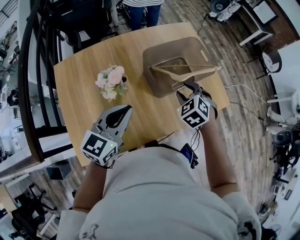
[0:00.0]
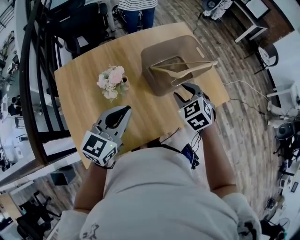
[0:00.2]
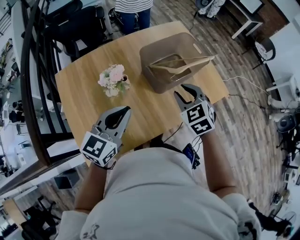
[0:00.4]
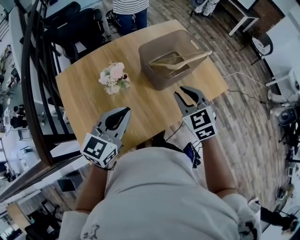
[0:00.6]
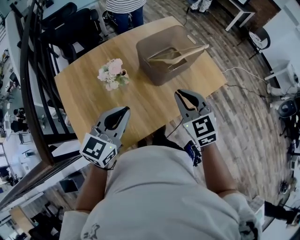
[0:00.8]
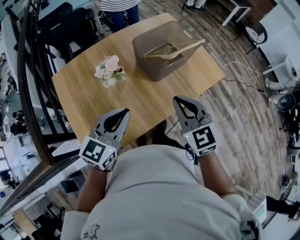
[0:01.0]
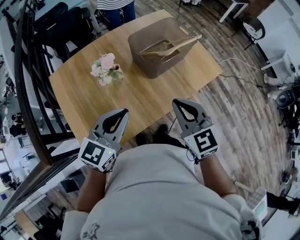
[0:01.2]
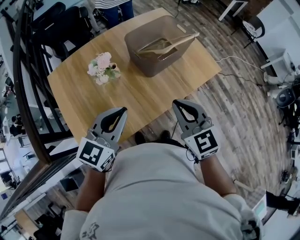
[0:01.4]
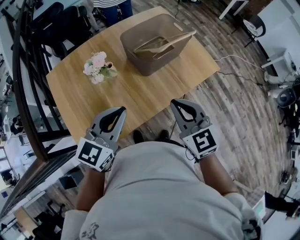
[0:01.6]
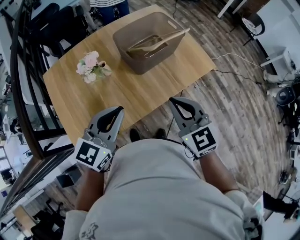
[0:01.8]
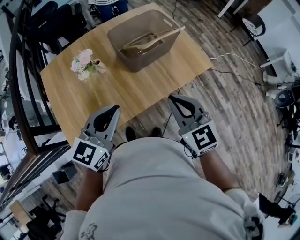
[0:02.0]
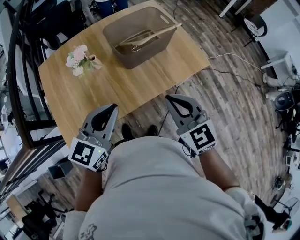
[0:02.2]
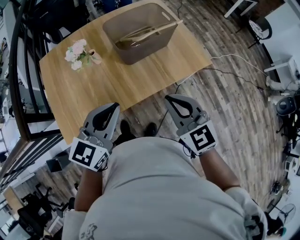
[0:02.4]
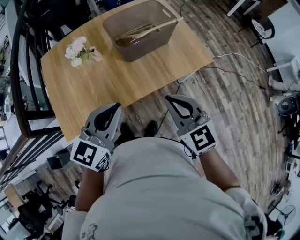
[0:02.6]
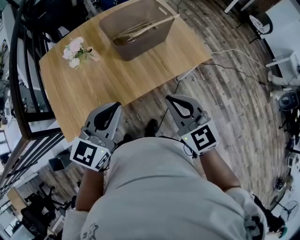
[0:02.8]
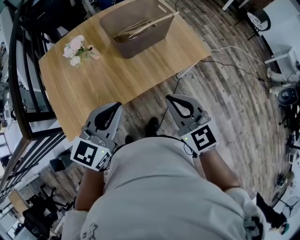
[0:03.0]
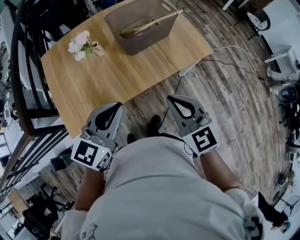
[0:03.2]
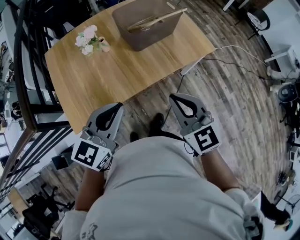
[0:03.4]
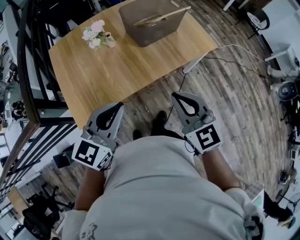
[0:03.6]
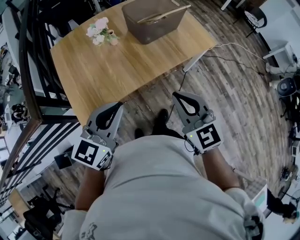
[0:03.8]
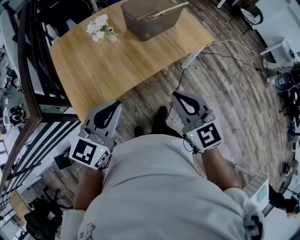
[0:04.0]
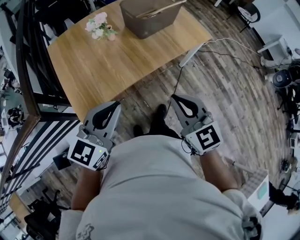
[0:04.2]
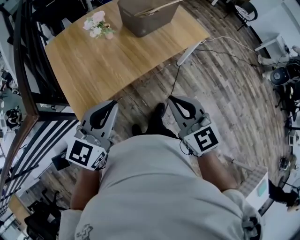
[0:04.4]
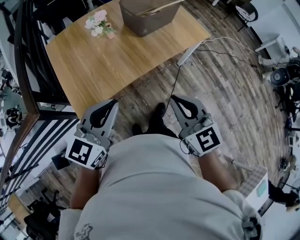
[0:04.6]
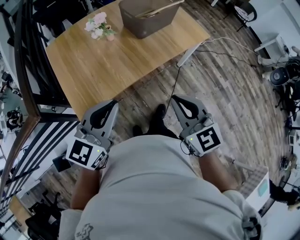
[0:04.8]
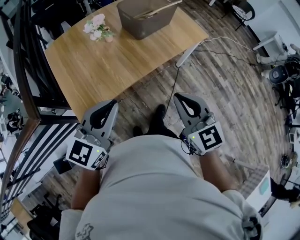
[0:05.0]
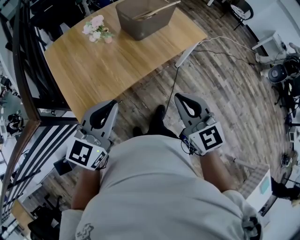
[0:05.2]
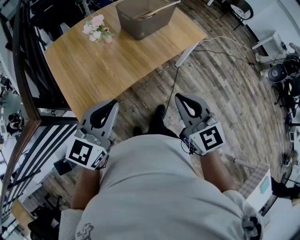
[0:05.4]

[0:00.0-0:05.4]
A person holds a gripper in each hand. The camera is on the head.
0:00.0 to 0:01.4: The right gripper heads backward and upward, covering roughly 25 cm, points its fingers approximately 30 degrees further upward, and closes its fingers, while the left gripper is displaced backward by about 10 cm.
0:01.4 to 0:02.8: The two grippers go some 15 cm to the right.
0:02.8 to 0:04.0: The two grippers go approximately 20 cm backward and to the left.
0:04.0 to 0:05.4: The grippers move only a little.

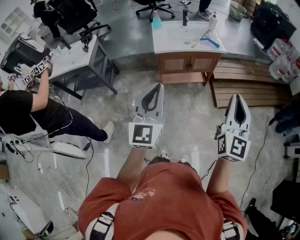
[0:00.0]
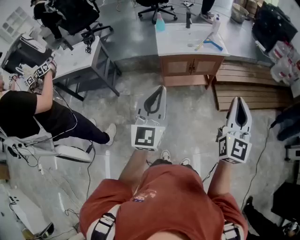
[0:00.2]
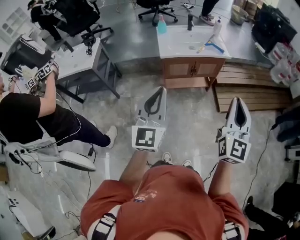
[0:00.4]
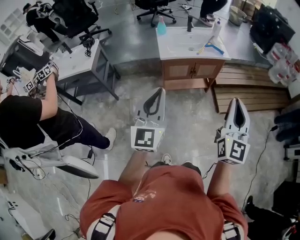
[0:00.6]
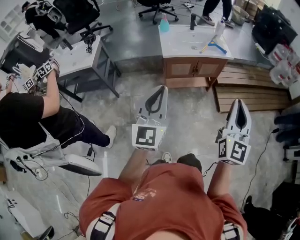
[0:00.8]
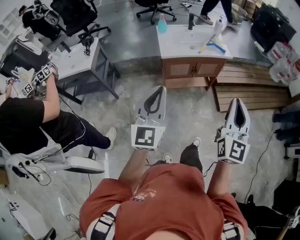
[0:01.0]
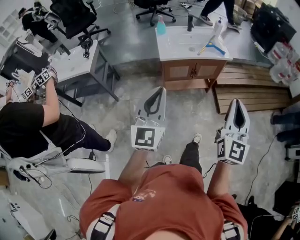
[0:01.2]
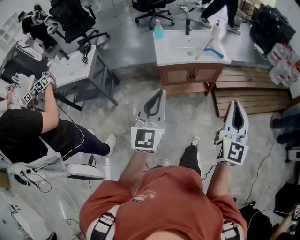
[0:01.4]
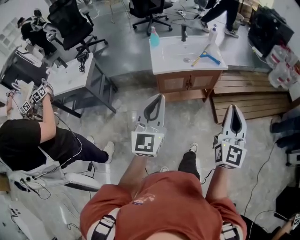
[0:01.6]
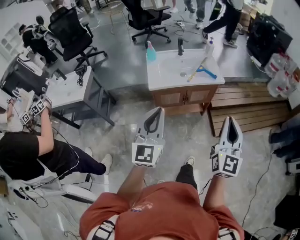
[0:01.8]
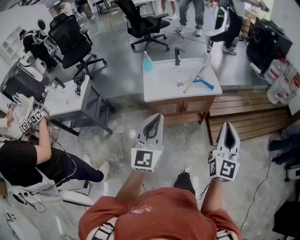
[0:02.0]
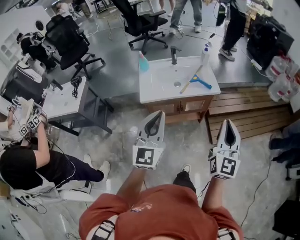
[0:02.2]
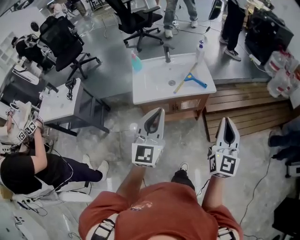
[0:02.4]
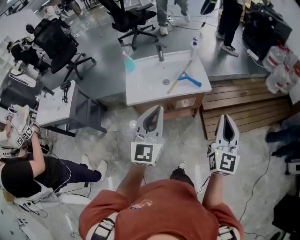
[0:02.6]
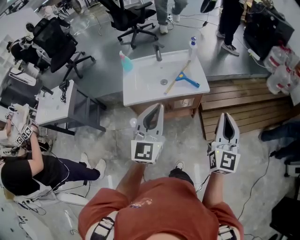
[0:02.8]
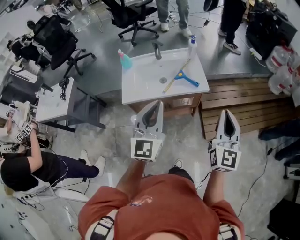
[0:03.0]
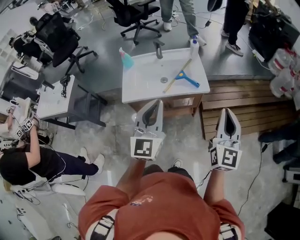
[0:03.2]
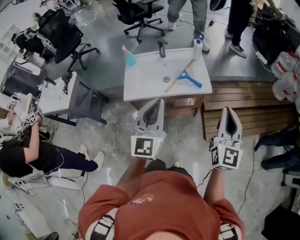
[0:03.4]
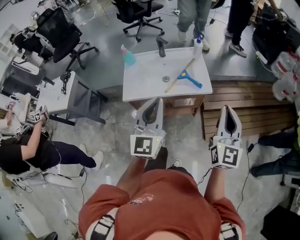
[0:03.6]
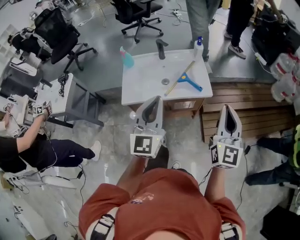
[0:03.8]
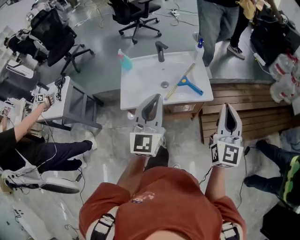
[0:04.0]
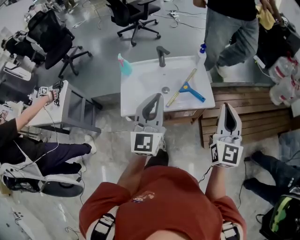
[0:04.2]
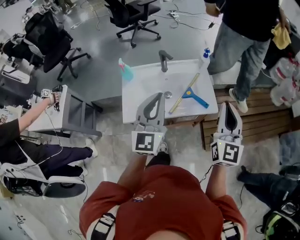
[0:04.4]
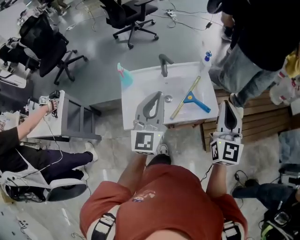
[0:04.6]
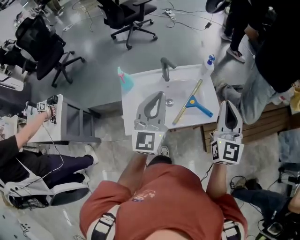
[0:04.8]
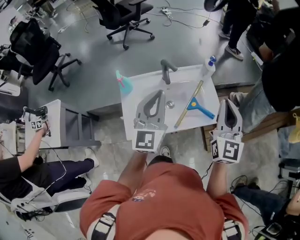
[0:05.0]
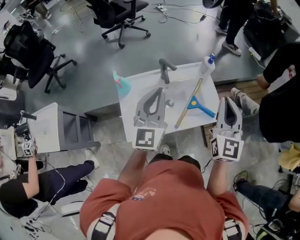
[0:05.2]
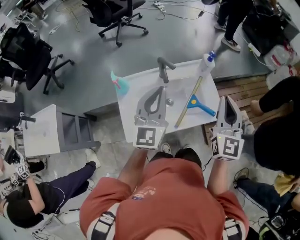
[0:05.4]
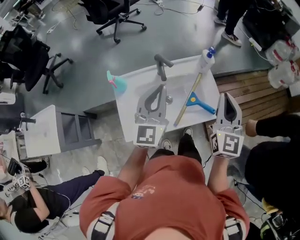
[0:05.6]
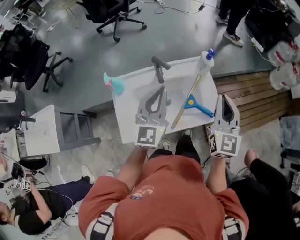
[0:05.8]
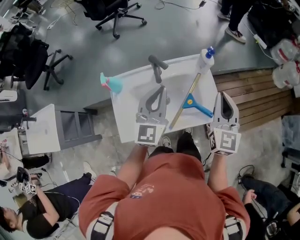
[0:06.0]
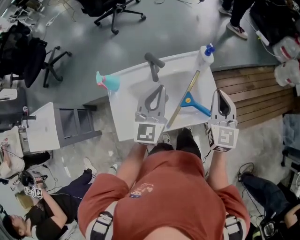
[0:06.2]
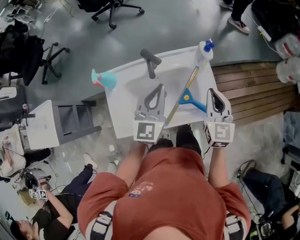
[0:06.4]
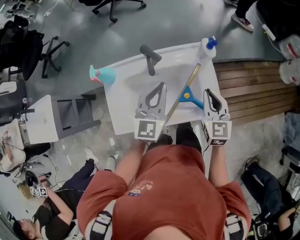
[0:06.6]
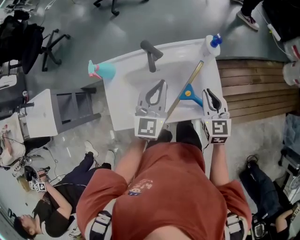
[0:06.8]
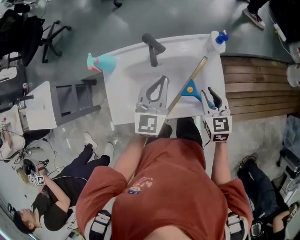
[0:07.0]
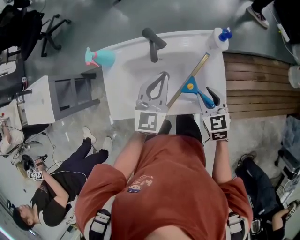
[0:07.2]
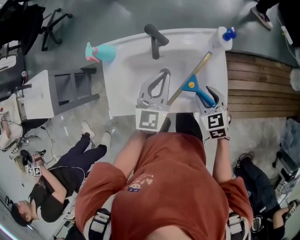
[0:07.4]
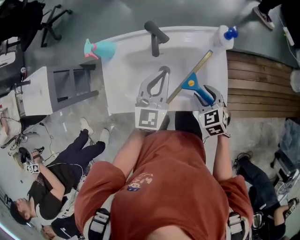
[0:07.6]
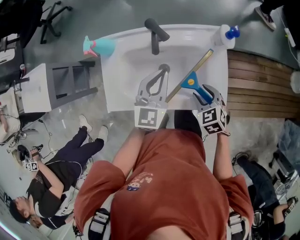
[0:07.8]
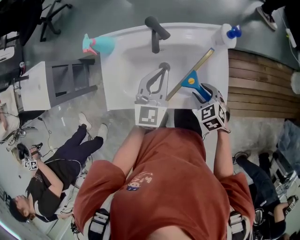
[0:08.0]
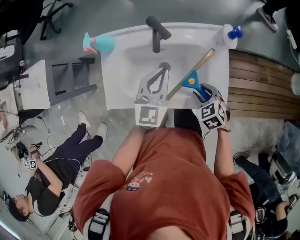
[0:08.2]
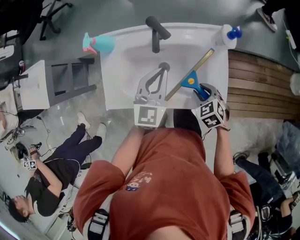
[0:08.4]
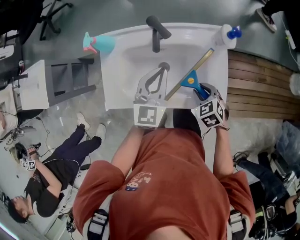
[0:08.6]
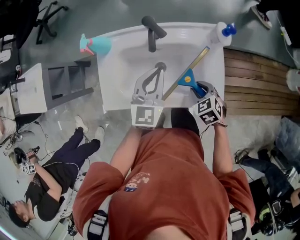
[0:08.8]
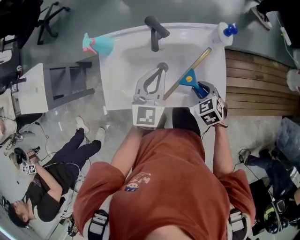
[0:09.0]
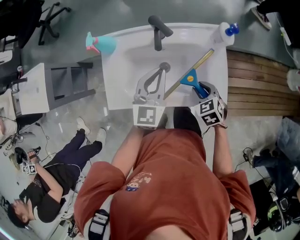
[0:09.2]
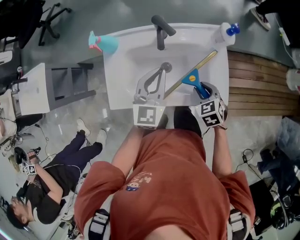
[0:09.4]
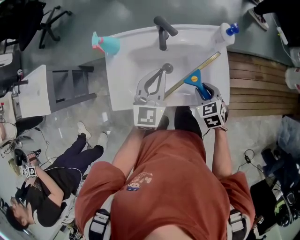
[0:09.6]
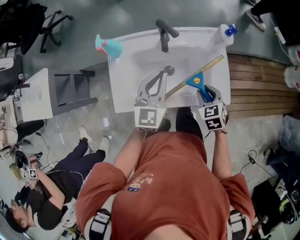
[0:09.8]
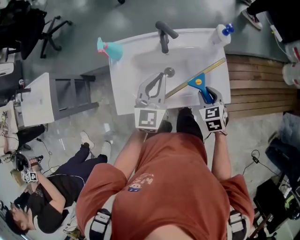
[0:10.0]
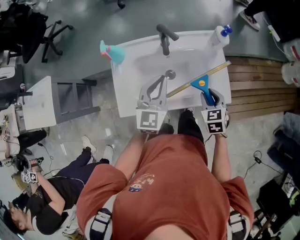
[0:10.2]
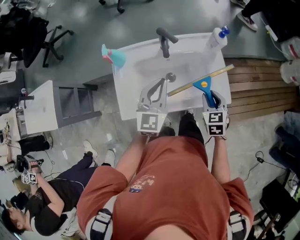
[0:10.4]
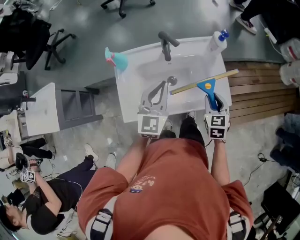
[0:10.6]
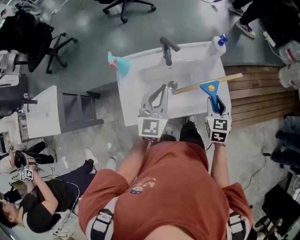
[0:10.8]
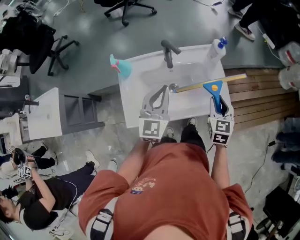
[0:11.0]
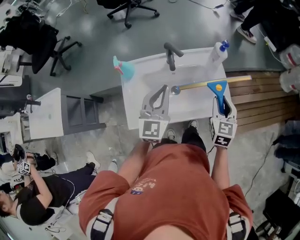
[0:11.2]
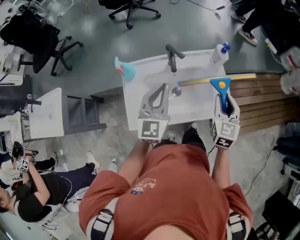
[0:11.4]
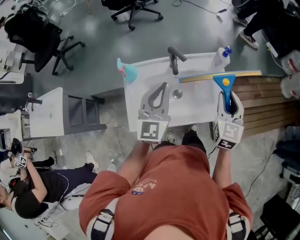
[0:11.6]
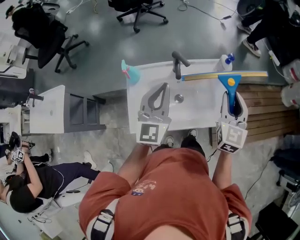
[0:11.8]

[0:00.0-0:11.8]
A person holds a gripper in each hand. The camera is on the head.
0:00.0 to 0:01.4: Both grippers travel together forward and to the left, about 10 cm.
0:01.4 to 0:03.0: The pair of grippers is taken forward and to the right, some 50 cm.
0:03.0 to 0:04.4: The two grippers go about 25 cm forward and to the left.
0:04.4 to 0:06.0: Both grippers travel together forward and downward, roughly 25 cm.
0:06.0 to 0:07.4: The right gripper shifts about 25 cm downward, points its fingers some 40 degrees further downward, and opens up; the left gripper moves downward, roughly 15 cm.
0:07.4 to 0:08.8: The right gripper travels downward by about 5 cm.
0:08.8 to 0:10.4: The left gripper moves backward, to the left and upward, roughly 10 cm; the right gripper is displaced upward and backward by roughly 10 cm, and rotates some 30 degrees.
0:10.4 to 0:11.8: The right gripper travels upward by some 20 cm, and tilts its fingers some 30 degrees upward. Meanwhile the left gripper goes some 15 cm upward.

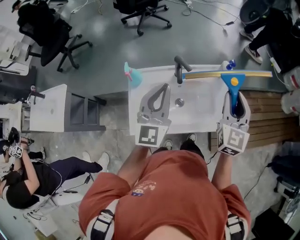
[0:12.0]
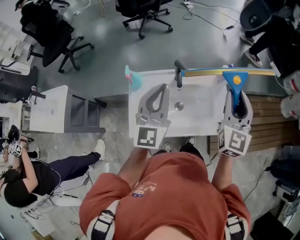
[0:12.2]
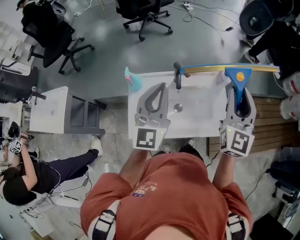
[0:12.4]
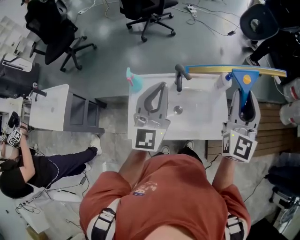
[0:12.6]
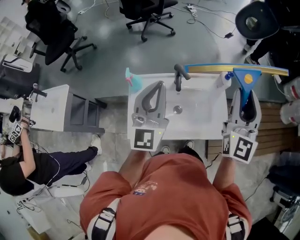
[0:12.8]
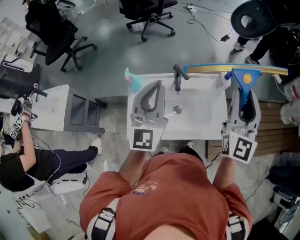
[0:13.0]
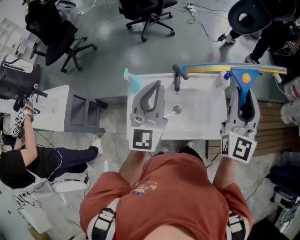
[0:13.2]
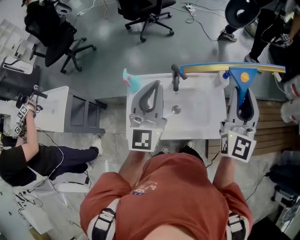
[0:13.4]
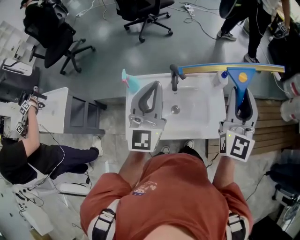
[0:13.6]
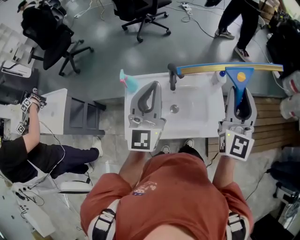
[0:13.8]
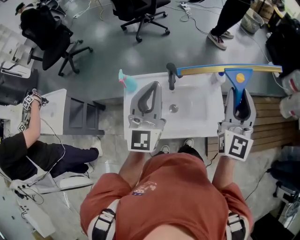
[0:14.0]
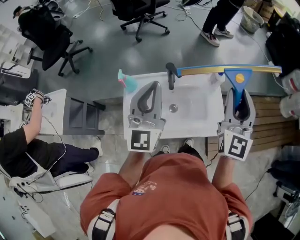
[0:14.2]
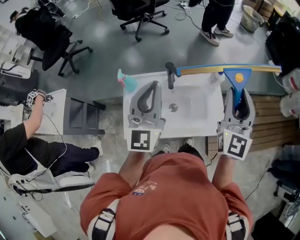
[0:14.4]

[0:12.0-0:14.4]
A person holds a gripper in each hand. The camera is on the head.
0:12.0 to 0:13.2: The left gripper is displaced upward by about 5 cm, while the right gripper is displaced upward by about 10 cm.
0:13.2 to 0:14.4: The grippers move only a little.

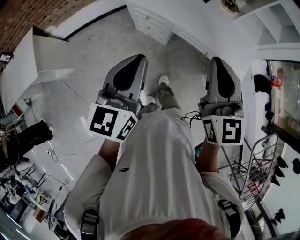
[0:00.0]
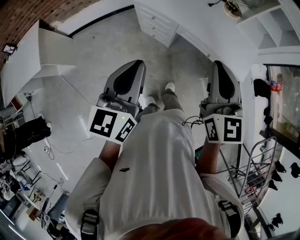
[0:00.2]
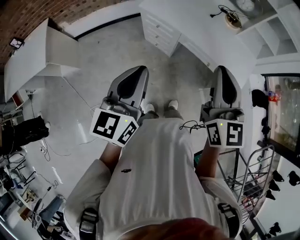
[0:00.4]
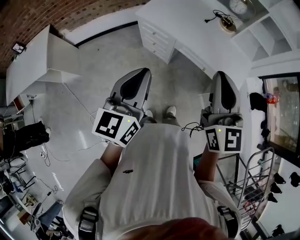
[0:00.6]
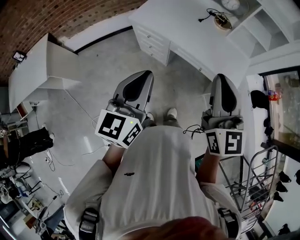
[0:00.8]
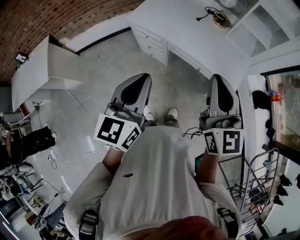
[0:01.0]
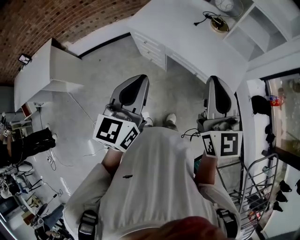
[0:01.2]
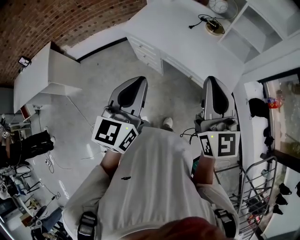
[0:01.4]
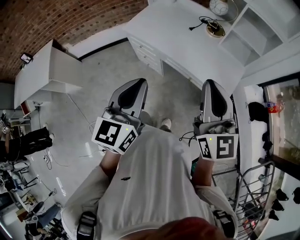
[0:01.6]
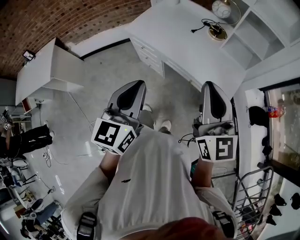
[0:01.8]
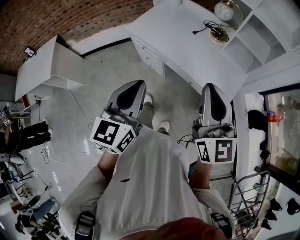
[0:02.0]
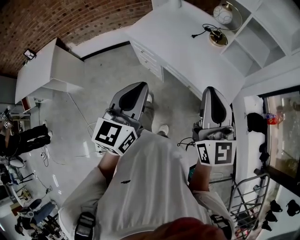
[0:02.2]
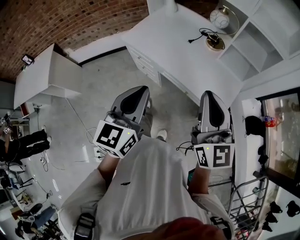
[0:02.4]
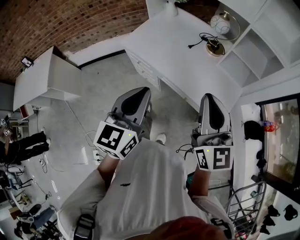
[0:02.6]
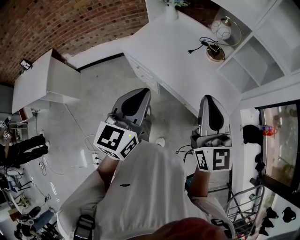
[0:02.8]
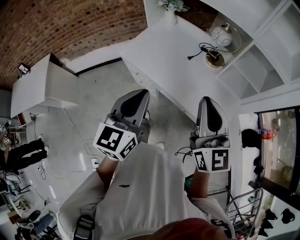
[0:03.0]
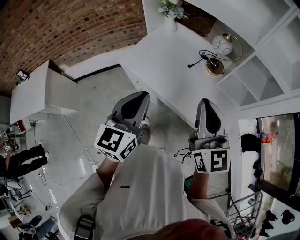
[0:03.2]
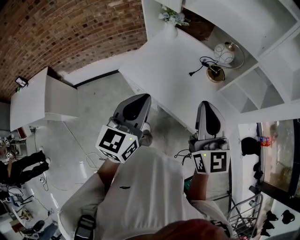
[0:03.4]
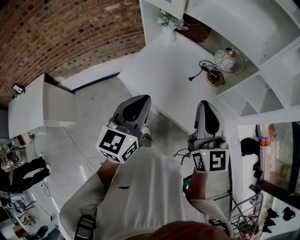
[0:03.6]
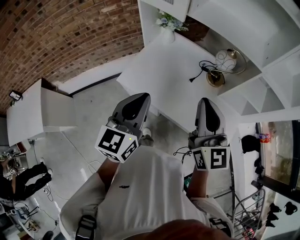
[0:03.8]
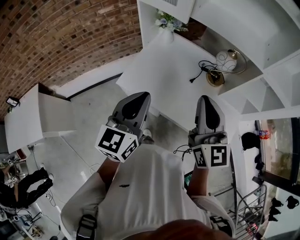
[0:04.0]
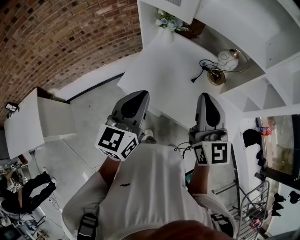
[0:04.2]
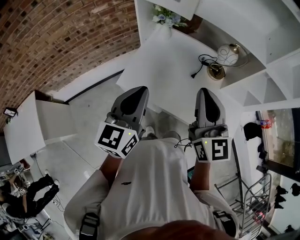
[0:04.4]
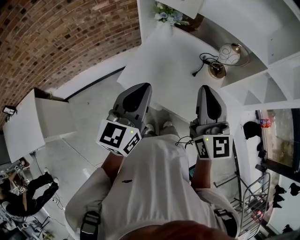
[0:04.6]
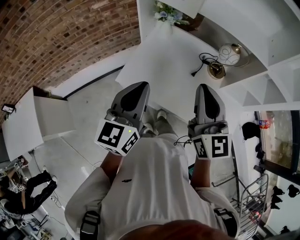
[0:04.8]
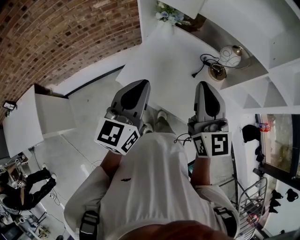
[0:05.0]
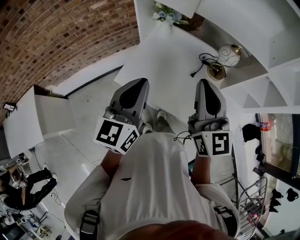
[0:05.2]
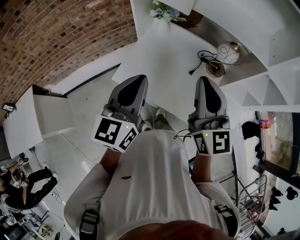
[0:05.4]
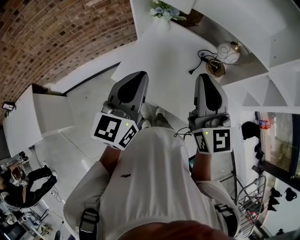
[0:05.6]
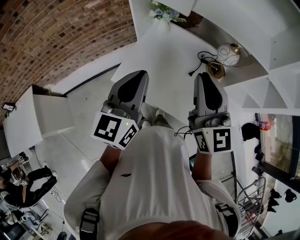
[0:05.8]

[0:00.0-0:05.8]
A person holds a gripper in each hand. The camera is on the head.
0:00.0 to 0:01.4: The grippers both shift to the right by approximately 15 cm.
0:01.4 to 0:02.8: The grippers both shift forward by about 10 cm.
0:02.8 to 0:04.4: The grippers both shift forward and to the left by approximately 30 cm.
0:04.4 to 0:05.8: Both grippers move forward, approximately 5 cm.
